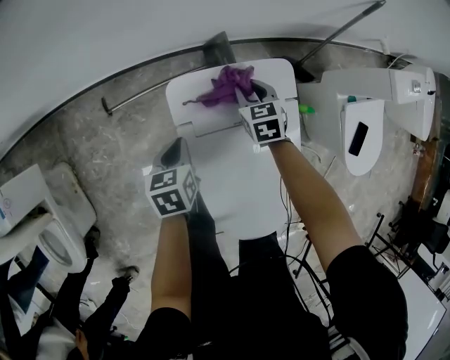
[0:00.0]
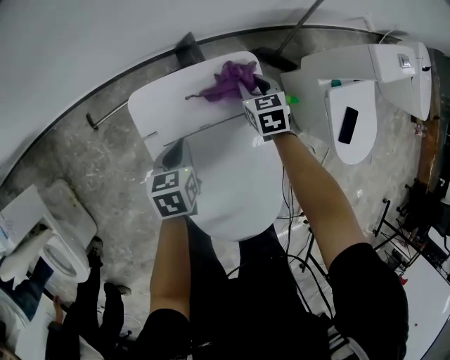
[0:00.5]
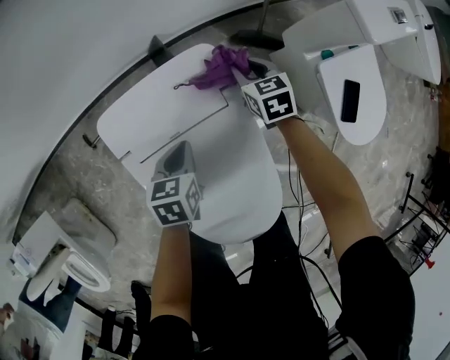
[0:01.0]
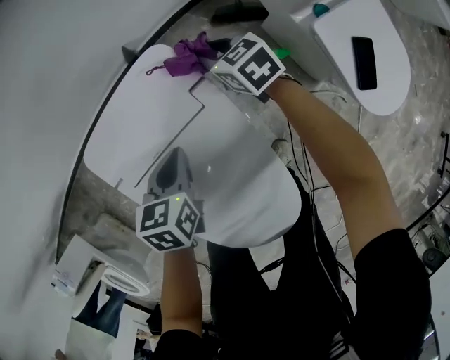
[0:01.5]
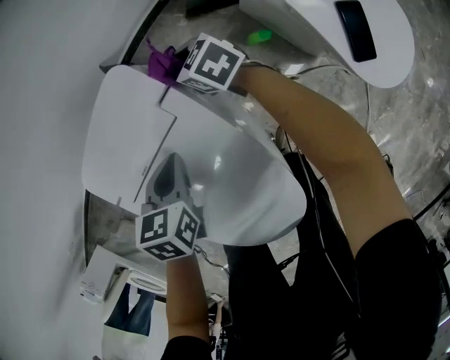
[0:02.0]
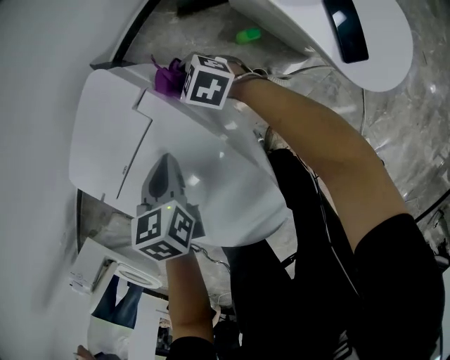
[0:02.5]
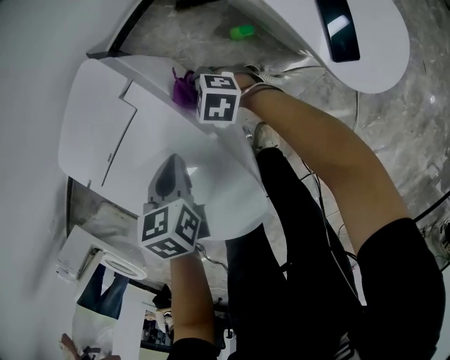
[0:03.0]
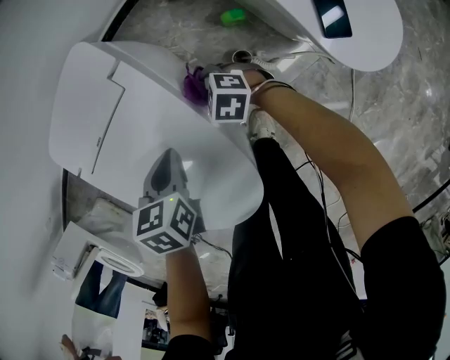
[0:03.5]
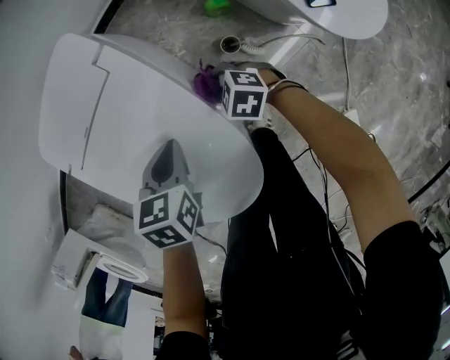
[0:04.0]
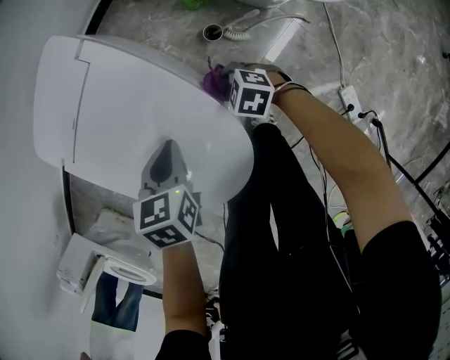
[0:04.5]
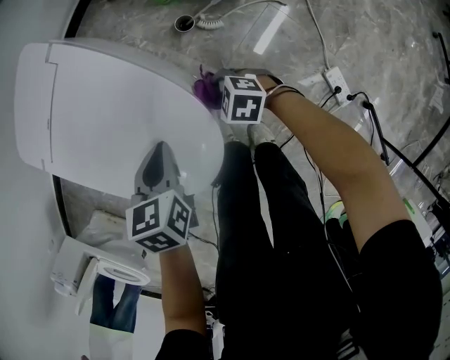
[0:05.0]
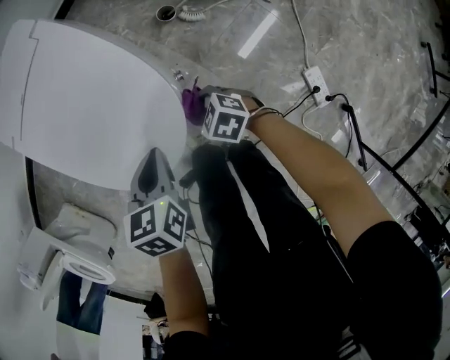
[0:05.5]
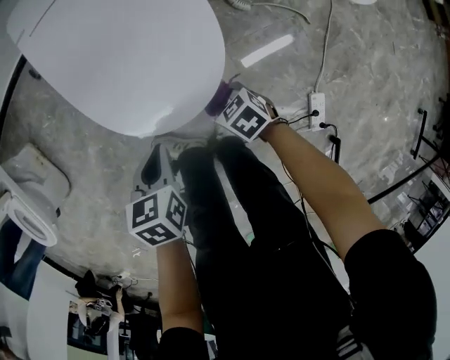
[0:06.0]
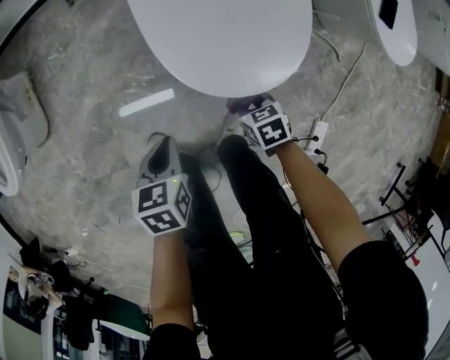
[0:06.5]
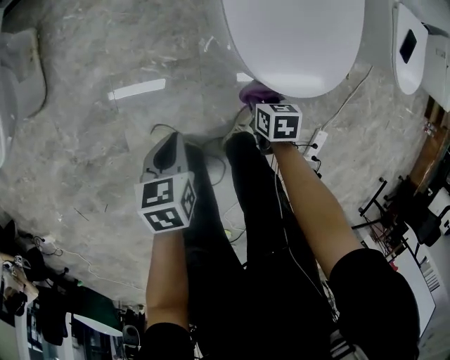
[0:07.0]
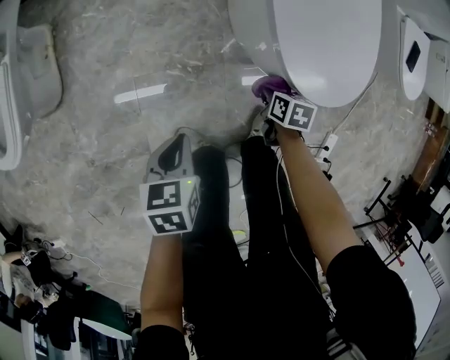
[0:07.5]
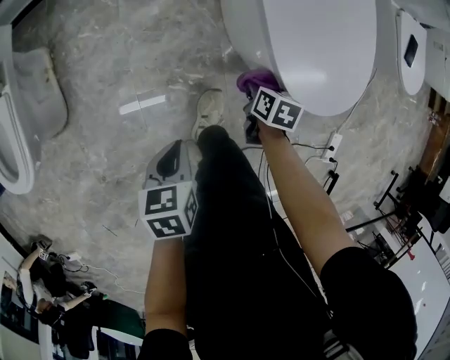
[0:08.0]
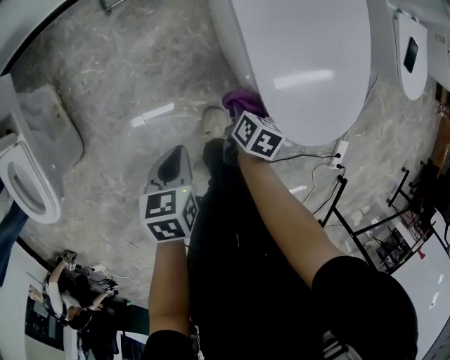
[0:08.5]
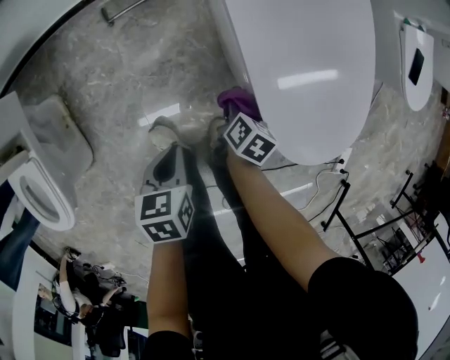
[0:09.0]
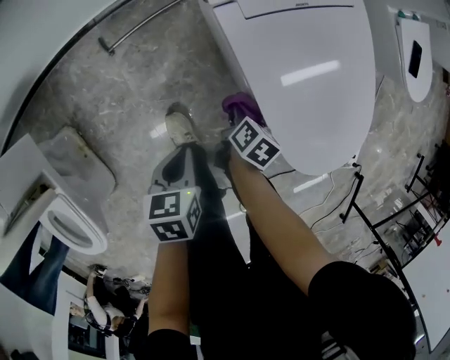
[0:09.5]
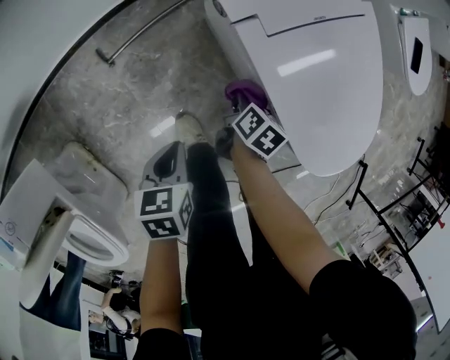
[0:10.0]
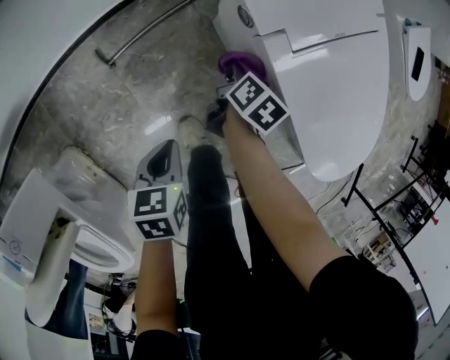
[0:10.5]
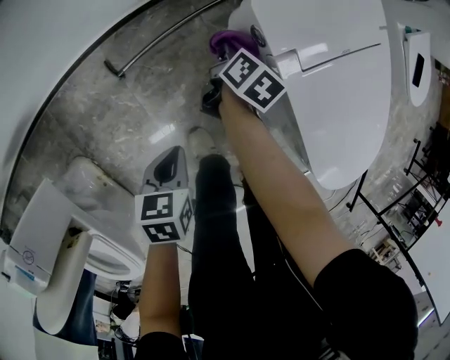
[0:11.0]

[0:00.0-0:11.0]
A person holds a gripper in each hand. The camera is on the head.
0.0 to 2.0 s: The right gripper shifts approximately 30 cm to the right and downward, and turns by approximately 30 degrees. The left gripper moves to the right, about 30 cm, and turns by roughly 30 degrees.
2.0 to 3.5 s: The right gripper goes approximately 25 cm backward, and changes its angle by approximately 30 degrees. The left gripper shifts roughly 15 cm backward.
3.5 to 5.5 s: Both grippers move backward, about 35 cm.
5.5 to 7.5 s: The right gripper heads to the left, covering about 30 cm, and turns by roughly 40 degrees. Meanwhile the left gripper goes about 50 cm to the left, and rotates some 30 degrees.
7.5 to 9.0 s: The right gripper goes some 25 cm forward and to the left, and swivels about 40 degrees, while the left gripper travels forward by roughly 25 cm.
9.0 to 11.0 s: The right gripper travels forward and to the left by approximately 40 cm; the left gripper heads to the left and forward, covering roughly 30 cm.

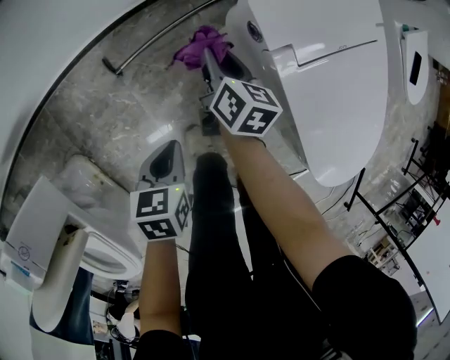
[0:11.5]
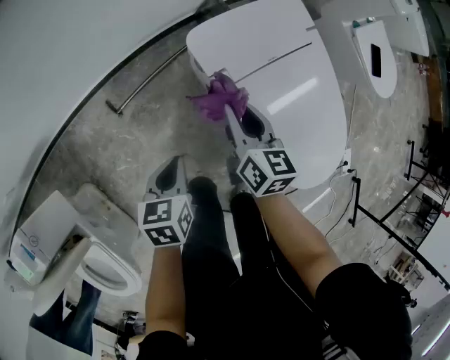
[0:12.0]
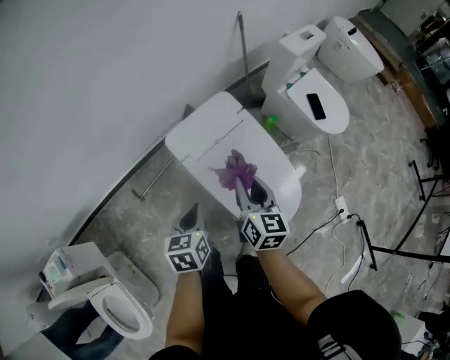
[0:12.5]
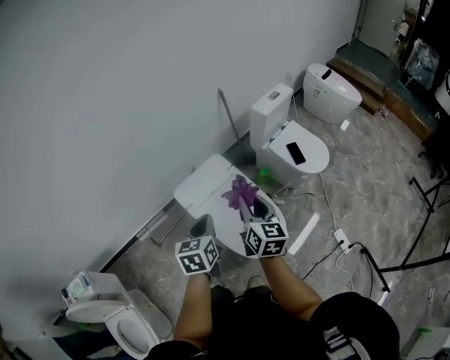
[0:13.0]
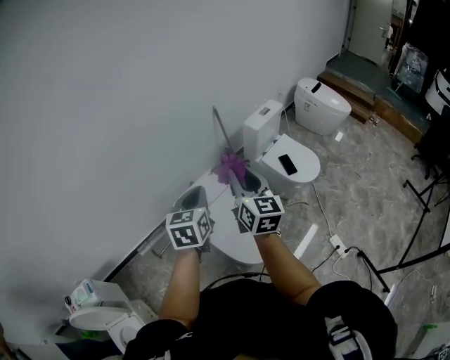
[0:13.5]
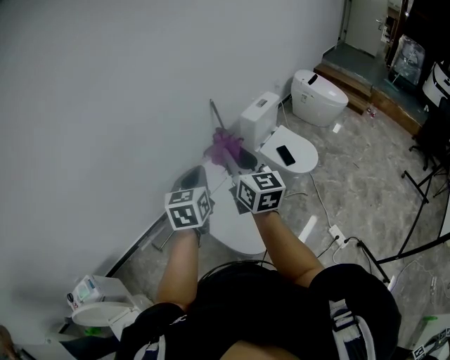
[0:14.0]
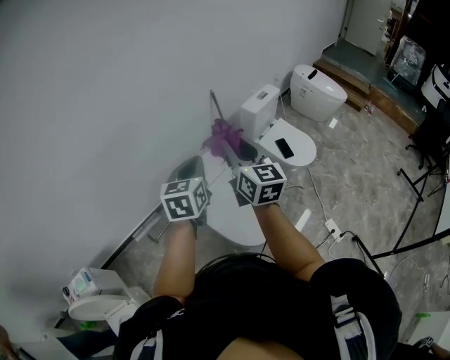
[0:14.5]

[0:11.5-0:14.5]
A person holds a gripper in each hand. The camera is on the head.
11.5 to 13.0 s: Both grippers move upward and to the right, some 80 cm. The right gripper turns by approximately 30 degrees; the left gripper rotates approximately 30 degrees.
13.0 to 14.5 s: The left gripper is displaced upward and forward by approximately 20 cm. The right gripper is displaced upward by approximately 20 cm.

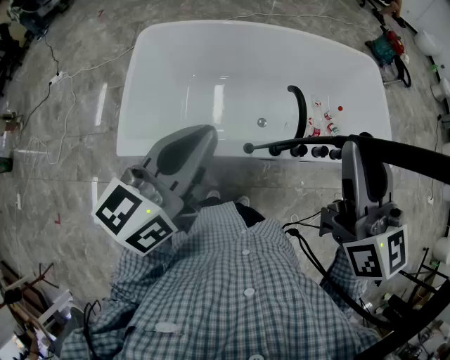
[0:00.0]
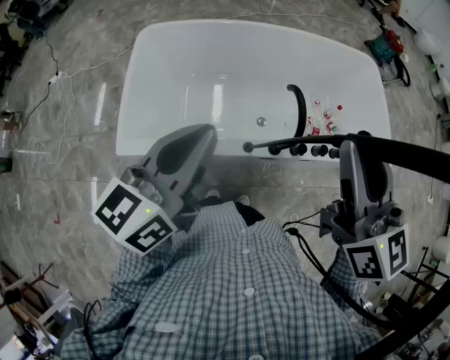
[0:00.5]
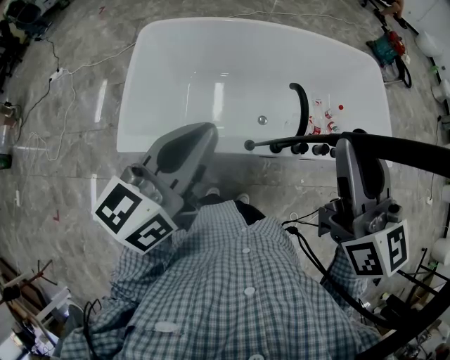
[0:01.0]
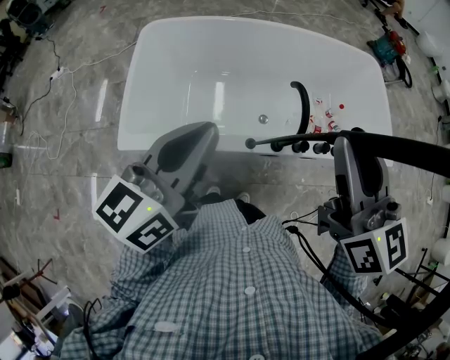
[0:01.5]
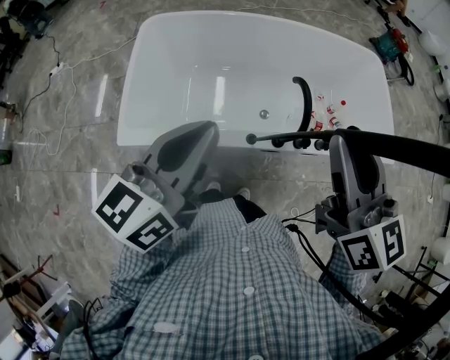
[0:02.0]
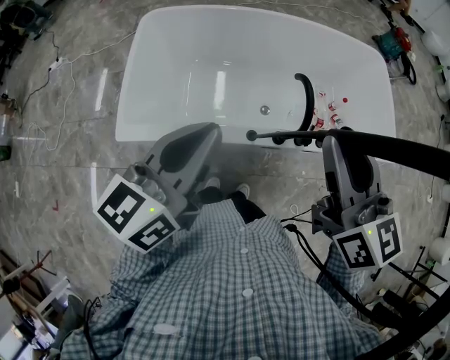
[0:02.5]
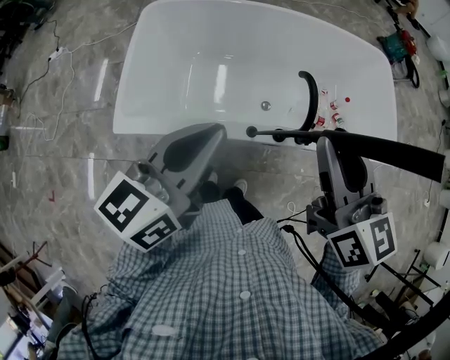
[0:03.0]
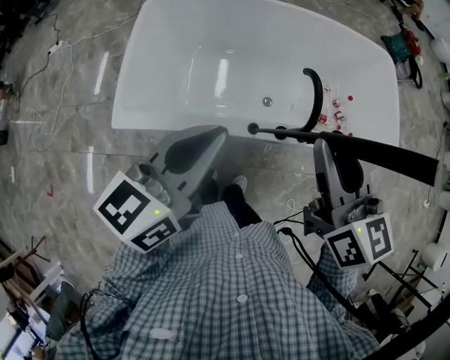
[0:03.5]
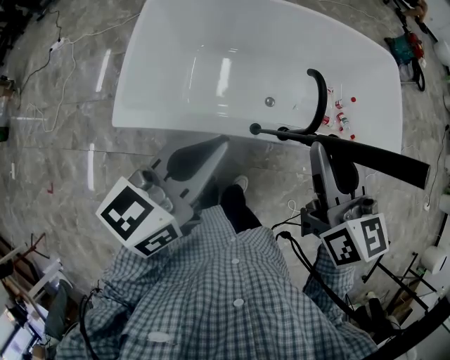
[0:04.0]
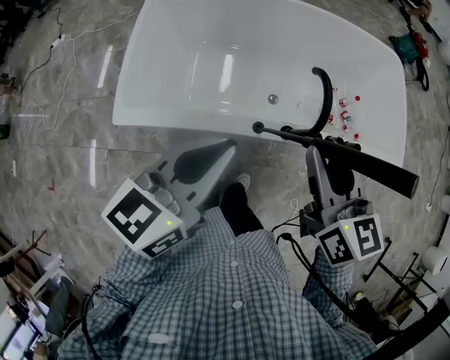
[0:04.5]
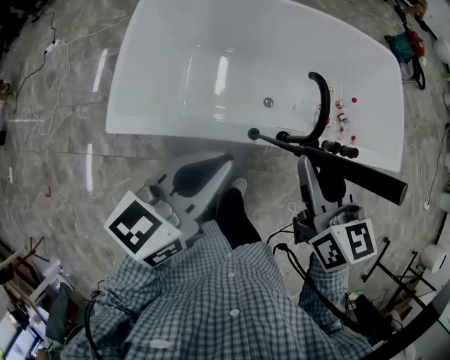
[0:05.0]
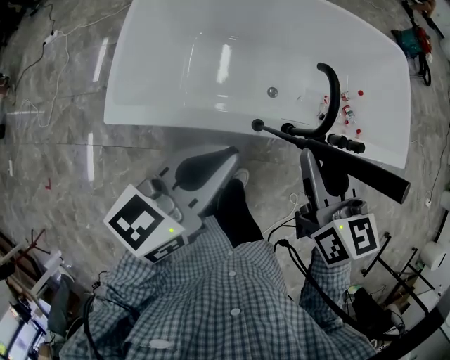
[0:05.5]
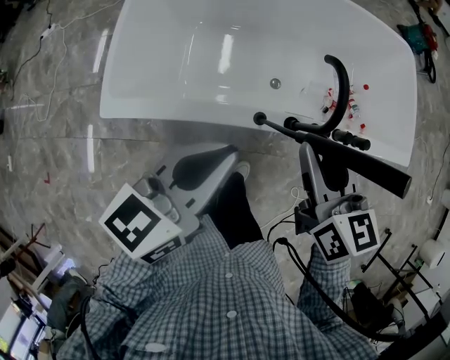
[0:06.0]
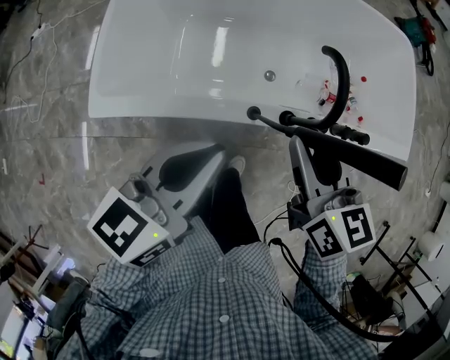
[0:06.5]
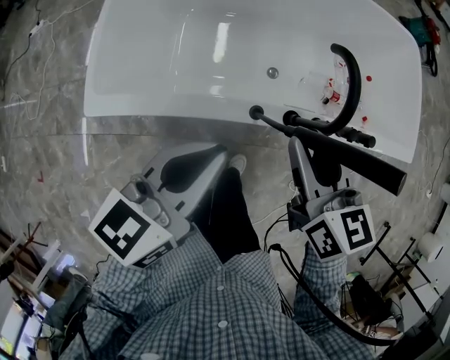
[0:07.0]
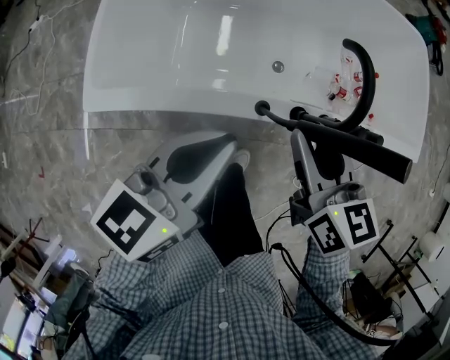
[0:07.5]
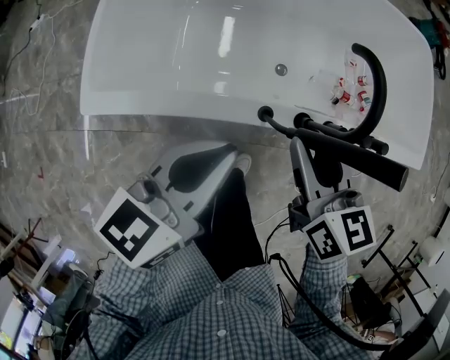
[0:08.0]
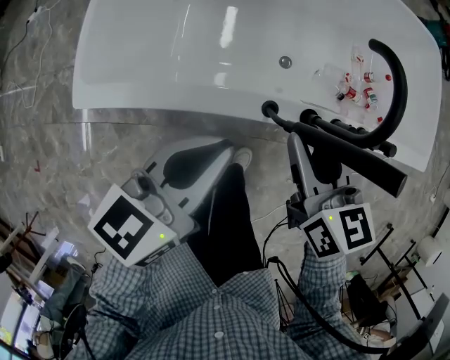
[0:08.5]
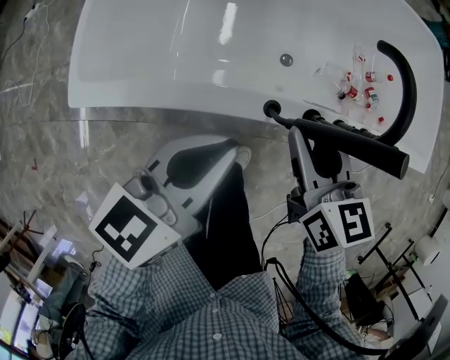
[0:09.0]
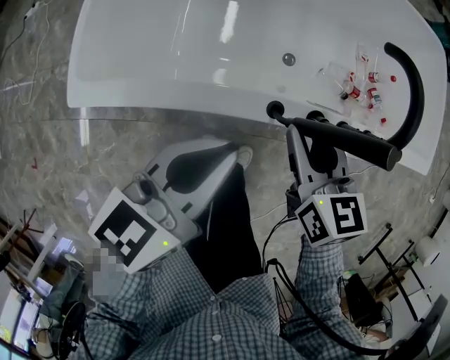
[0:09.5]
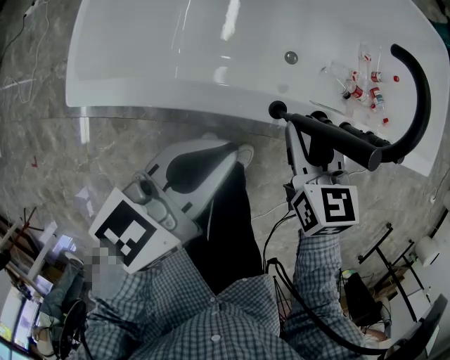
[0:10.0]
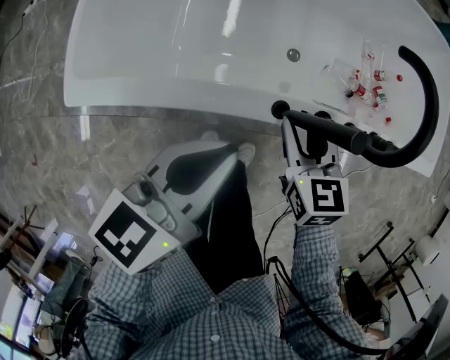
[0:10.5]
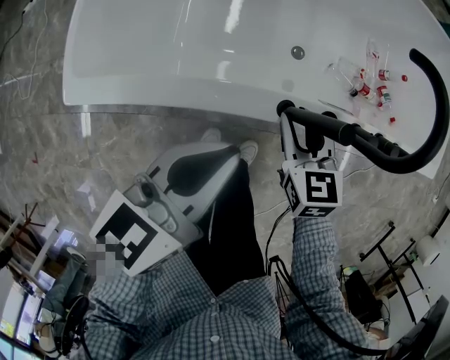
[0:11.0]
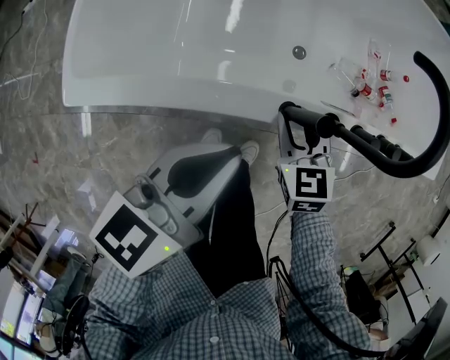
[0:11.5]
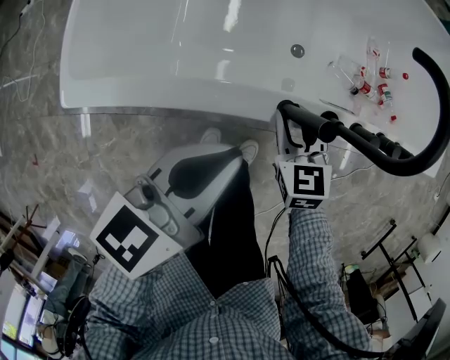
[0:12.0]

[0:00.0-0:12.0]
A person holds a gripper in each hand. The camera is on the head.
0.0 to 2.0 s: The grippers move only a little.
2.0 to 4.0 s: The left gripper shifts some 5 cm downward. Meanwhile the right gripper shifts about 10 cm downward.
4.0 to 6.0 s: The grippers both shift downward by some 10 cm.
6.0 to 8.0 s: Both grippers move downward, approximately 10 cm.
8.0 to 10.0 s: The right gripper shifts about 10 cm downward. Meanwhile the left gripper shifts roughly 5 cm downward.
10.0 to 12.0 s: The right gripper moves downward, roughly 10 cm.

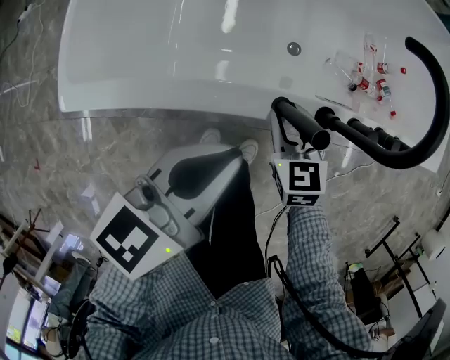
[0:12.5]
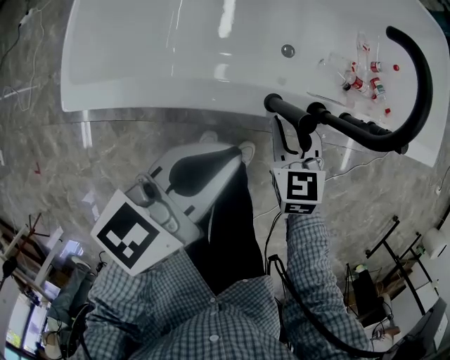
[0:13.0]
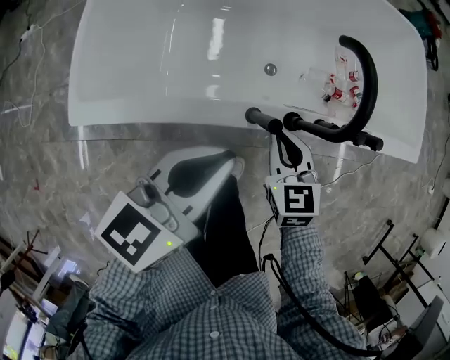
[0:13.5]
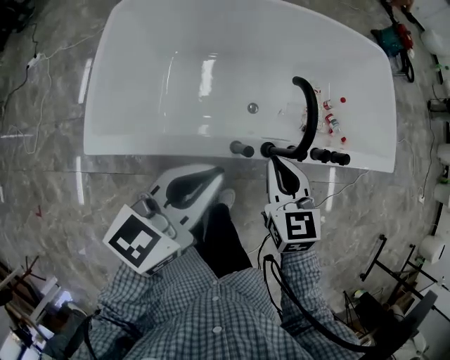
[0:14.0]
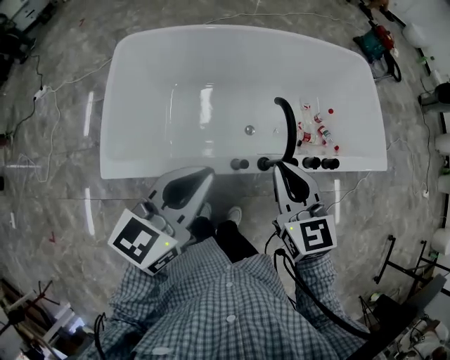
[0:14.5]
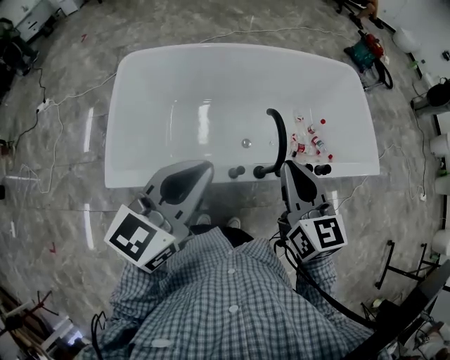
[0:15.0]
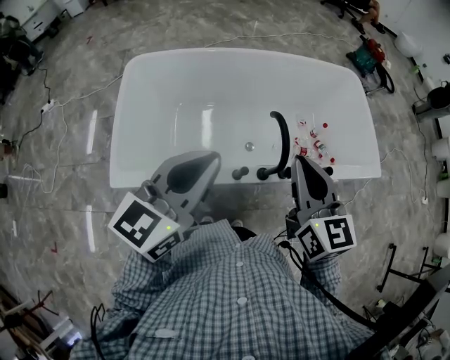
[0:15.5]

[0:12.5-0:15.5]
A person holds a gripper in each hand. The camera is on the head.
12.5 to 14.0 s: Both grippers travel together upward, approximately 20 cm. The right gripper closes its fingers.
14.0 to 15.5 s: The two grippers go about 20 cm upward. The right gripper rotates about 20 degrees.
